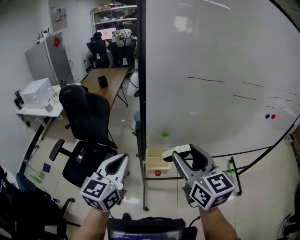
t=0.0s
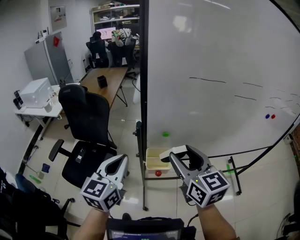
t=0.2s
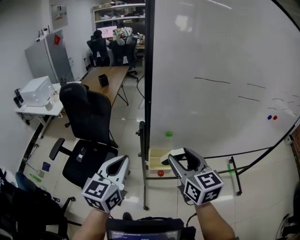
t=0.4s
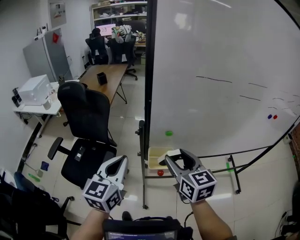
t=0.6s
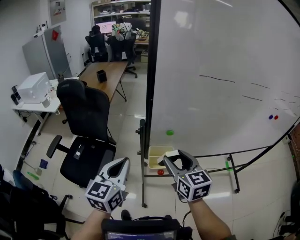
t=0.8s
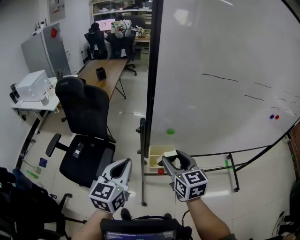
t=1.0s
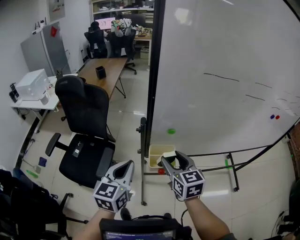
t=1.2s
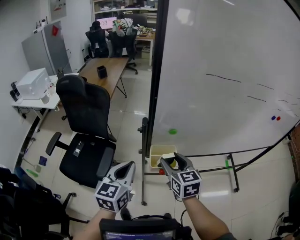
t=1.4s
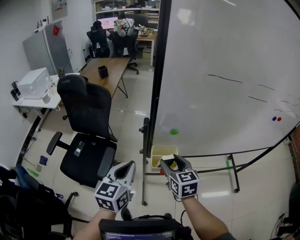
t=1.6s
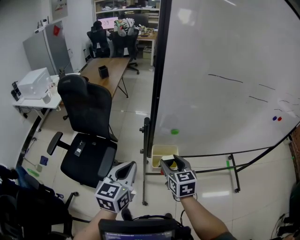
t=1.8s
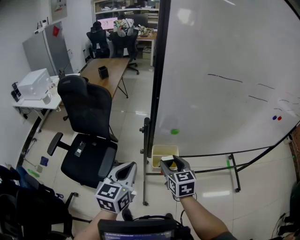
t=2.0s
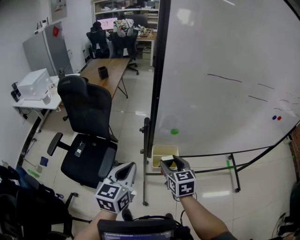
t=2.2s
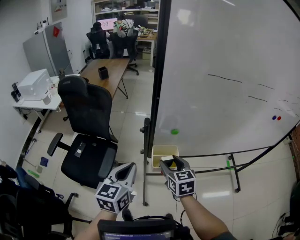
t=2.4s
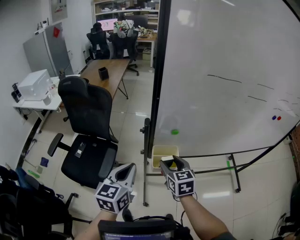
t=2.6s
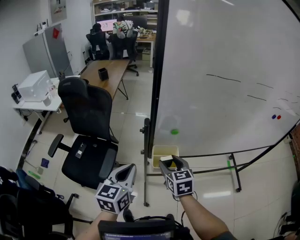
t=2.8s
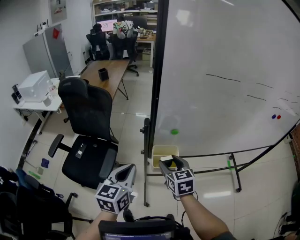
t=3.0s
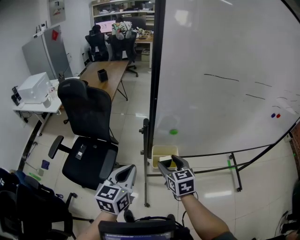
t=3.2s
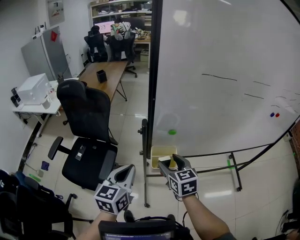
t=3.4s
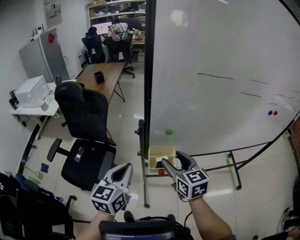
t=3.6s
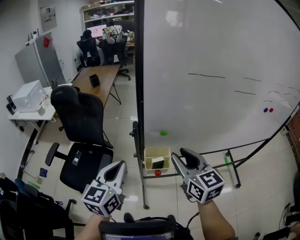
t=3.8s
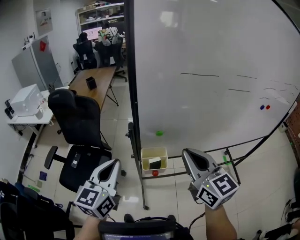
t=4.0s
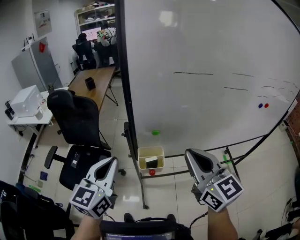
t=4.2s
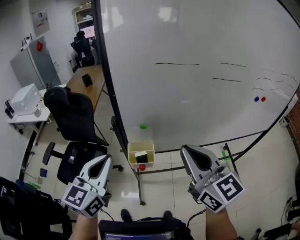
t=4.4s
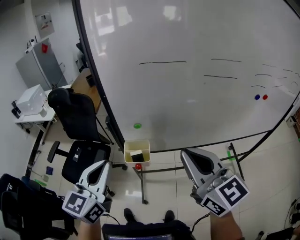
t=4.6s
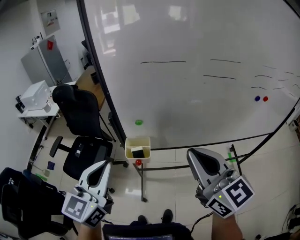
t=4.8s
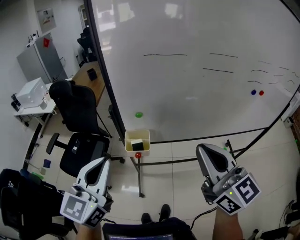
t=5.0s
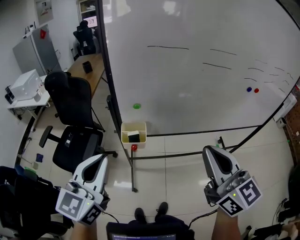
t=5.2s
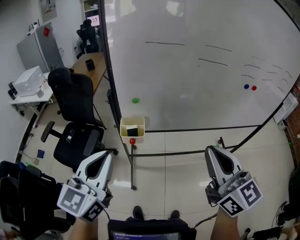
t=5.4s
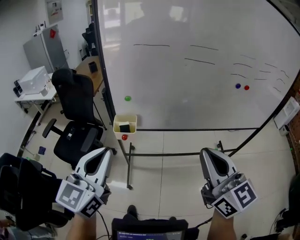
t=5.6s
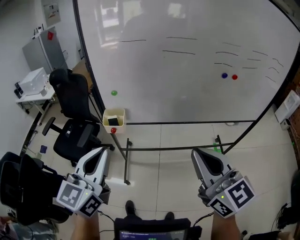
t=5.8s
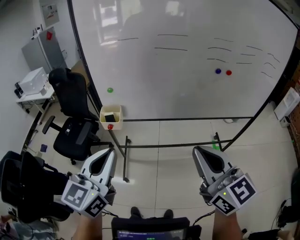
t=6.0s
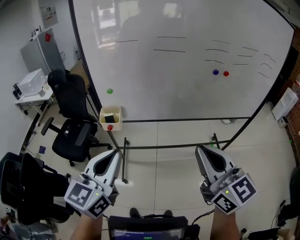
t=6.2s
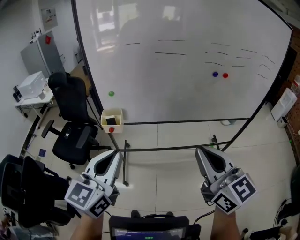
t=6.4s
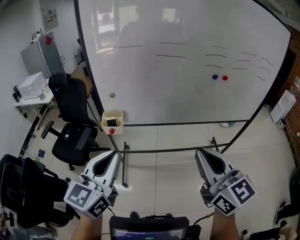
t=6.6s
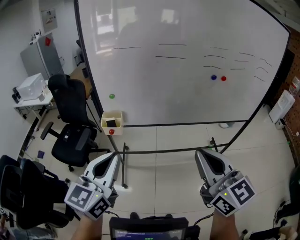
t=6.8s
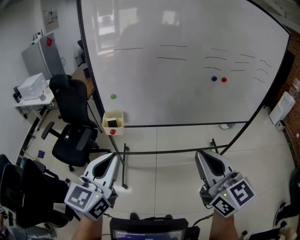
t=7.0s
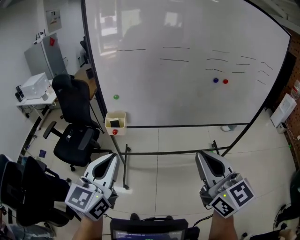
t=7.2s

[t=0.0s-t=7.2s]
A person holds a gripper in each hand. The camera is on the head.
t=0.0s to t=1.4s: The right gripper moves downward, some 20 cm, while the left gripper shifts roughly 10 cm downward.
t=1.4s to t=2.8s: The grippers make only small movements.
t=2.8s to t=4.4s: The right gripper travels upward and to the right by approximately 30 cm, angles its fingers upward, by roughly 30 degrees, and closes up. The left gripper moves upward and to the right, some 15 cm.
t=4.4s to t=5.8s: The grippers both shift backward and to the right by some 30 cm.
t=5.8s to t=7.2s: Both grippers travel together backward, about 5 cm.

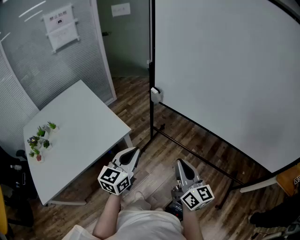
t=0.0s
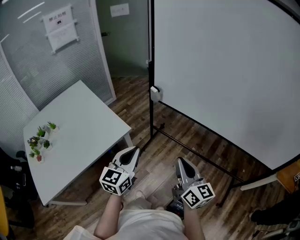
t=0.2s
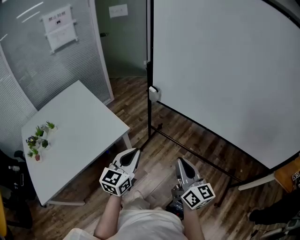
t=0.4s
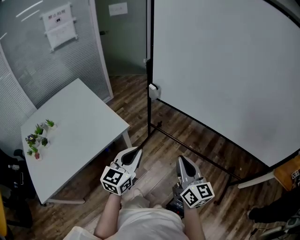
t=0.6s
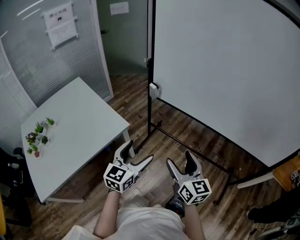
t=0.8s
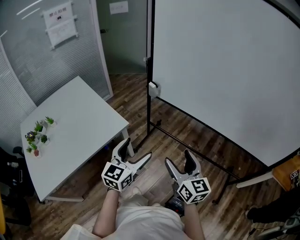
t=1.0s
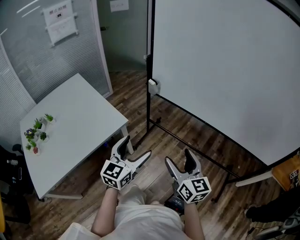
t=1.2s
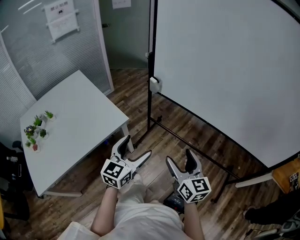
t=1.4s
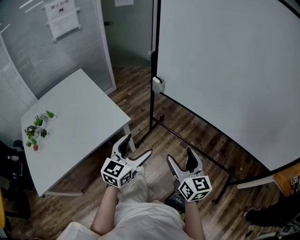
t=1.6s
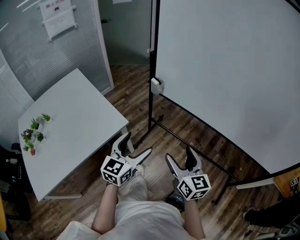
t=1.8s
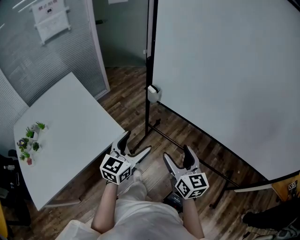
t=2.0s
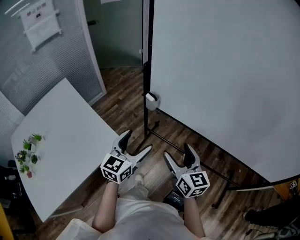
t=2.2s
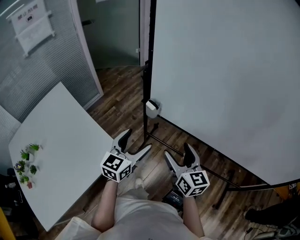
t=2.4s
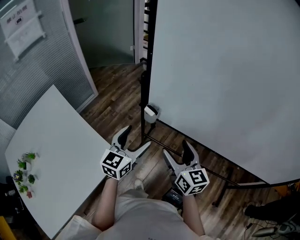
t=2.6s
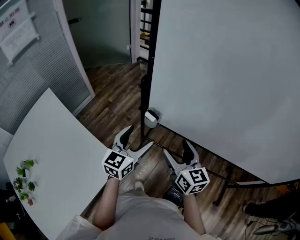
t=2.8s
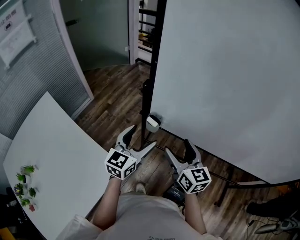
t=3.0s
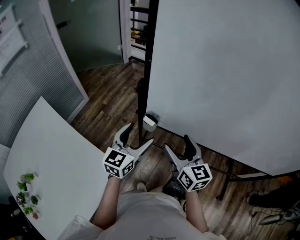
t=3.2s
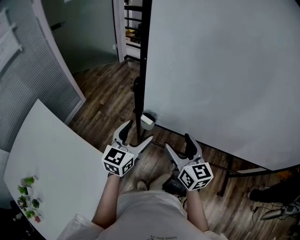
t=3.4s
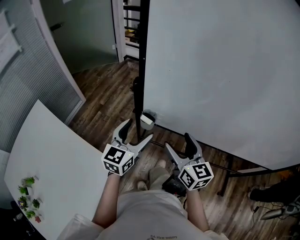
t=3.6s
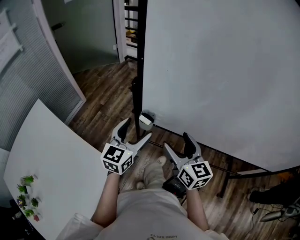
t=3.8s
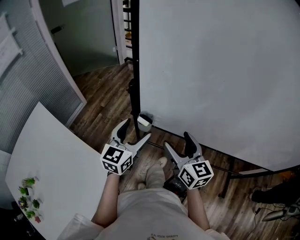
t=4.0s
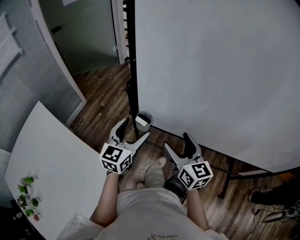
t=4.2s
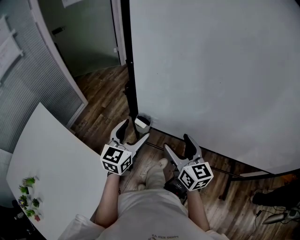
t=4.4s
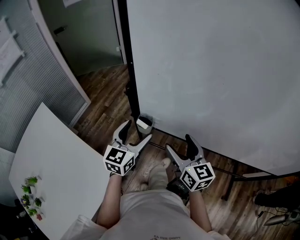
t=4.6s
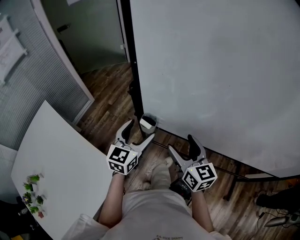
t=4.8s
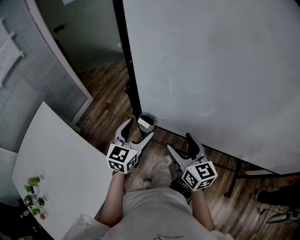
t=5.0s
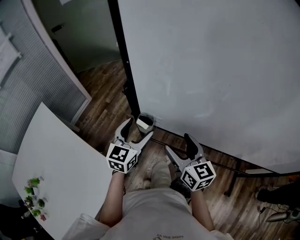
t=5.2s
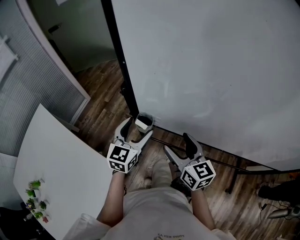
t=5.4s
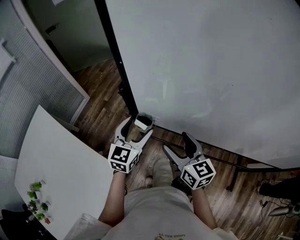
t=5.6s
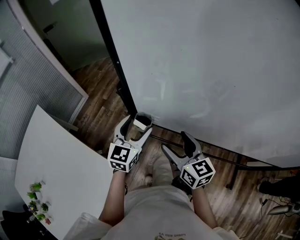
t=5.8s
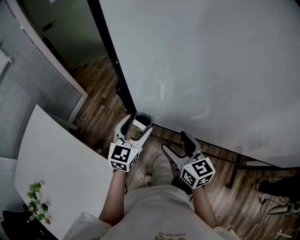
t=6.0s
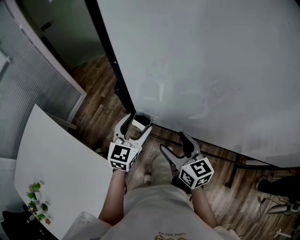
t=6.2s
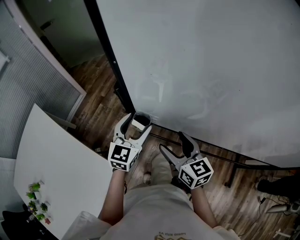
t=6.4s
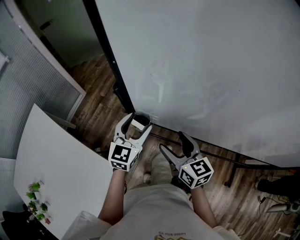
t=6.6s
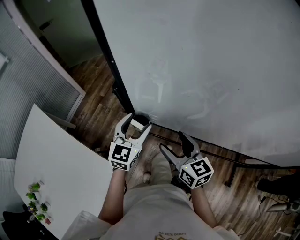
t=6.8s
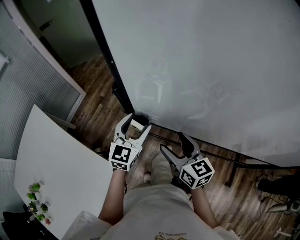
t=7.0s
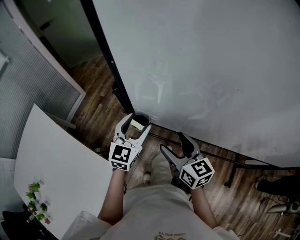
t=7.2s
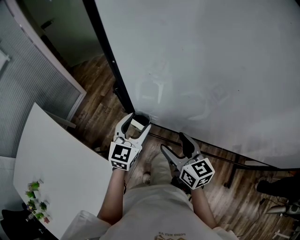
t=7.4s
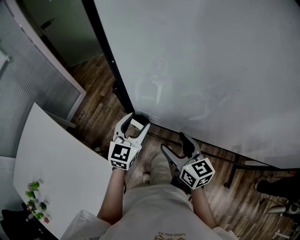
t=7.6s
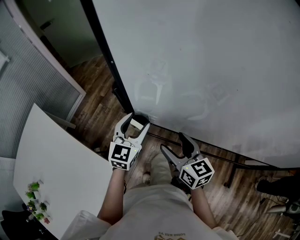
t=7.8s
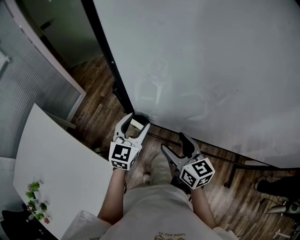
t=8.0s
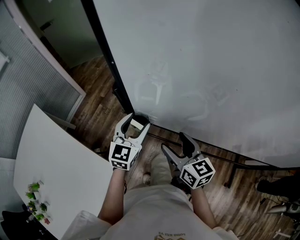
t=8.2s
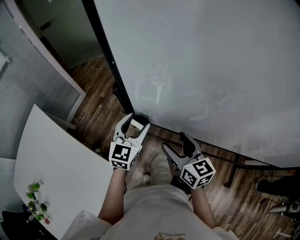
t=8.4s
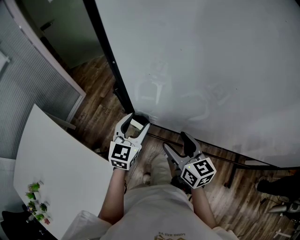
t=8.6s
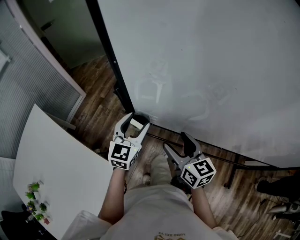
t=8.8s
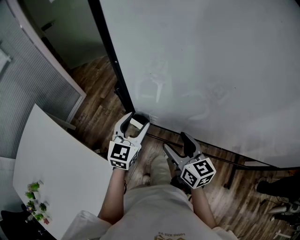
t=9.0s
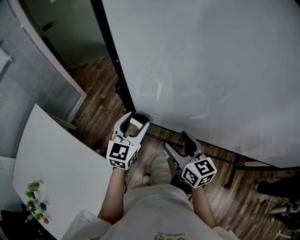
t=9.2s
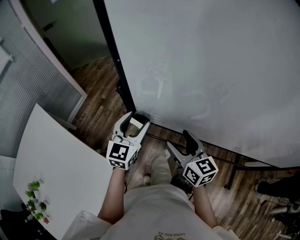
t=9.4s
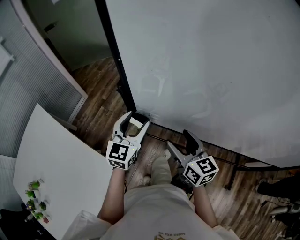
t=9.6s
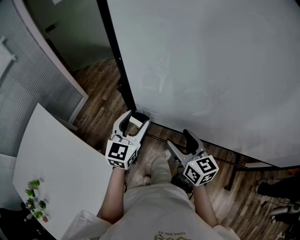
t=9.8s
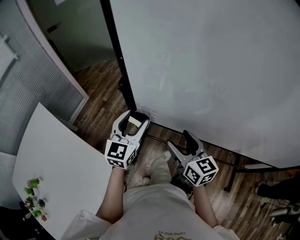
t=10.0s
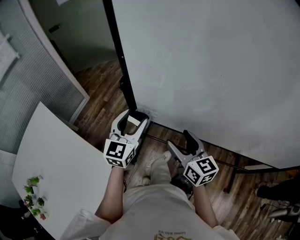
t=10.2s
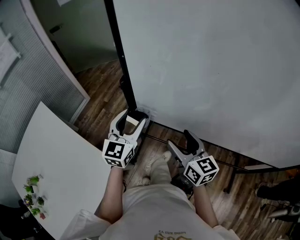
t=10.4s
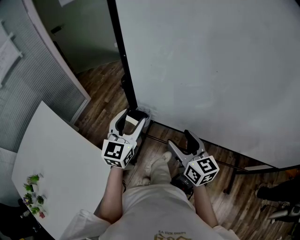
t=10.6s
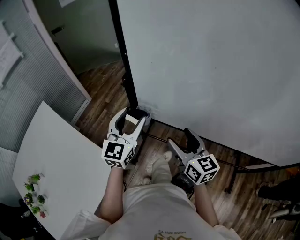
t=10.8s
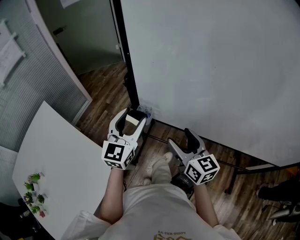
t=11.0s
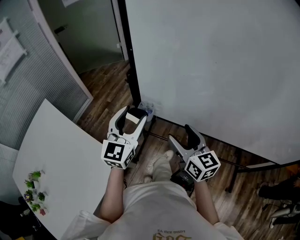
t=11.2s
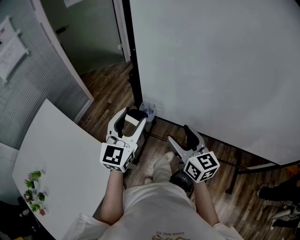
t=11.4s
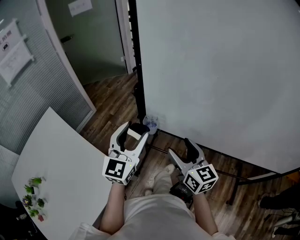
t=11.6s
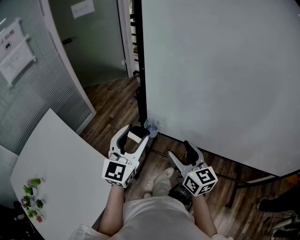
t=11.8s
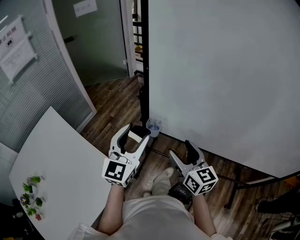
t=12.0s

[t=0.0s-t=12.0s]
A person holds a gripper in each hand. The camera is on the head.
t=0.0s to t=1.6s: The left gripper opens, while the right gripper opens up.
t=1.6s to t=3.0s: Both grippers move forward, about 35 cm.
t=3.0s to t=4.4s: There are only small adjustments of the grippers.
t=4.4s to t=6.0s: The left gripper travels forward by approximately 5 cm; the right gripper changes place by some 5 cm.
t=6.0s to t=9.0s: Neither gripper changes place.
t=9.0s to t=10.4s: The left gripper moves upward, approximately 5 cm.
t=10.4s to t=12.0s: The left gripper goes approximately 10 cm backward and upward. Meanwhile the right gripper shifts by roughly 5 cm.

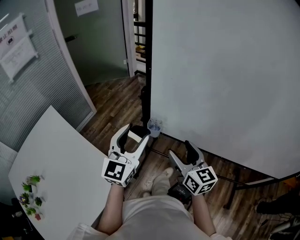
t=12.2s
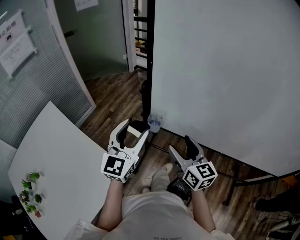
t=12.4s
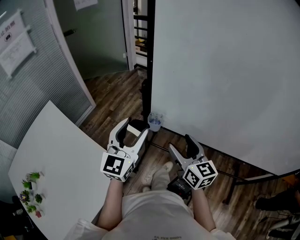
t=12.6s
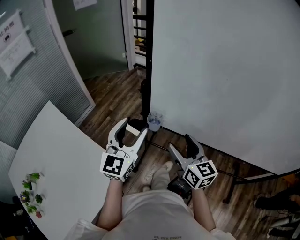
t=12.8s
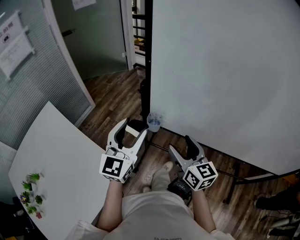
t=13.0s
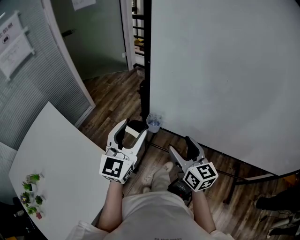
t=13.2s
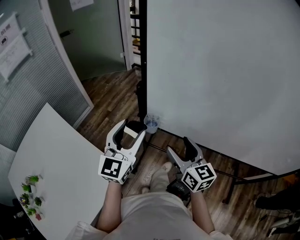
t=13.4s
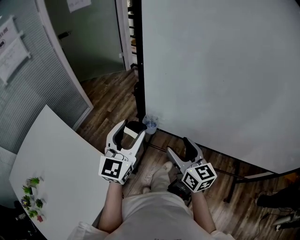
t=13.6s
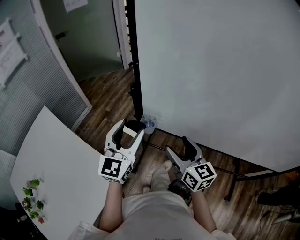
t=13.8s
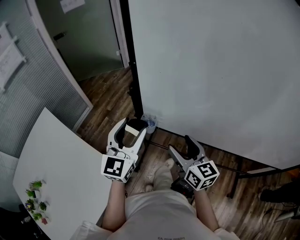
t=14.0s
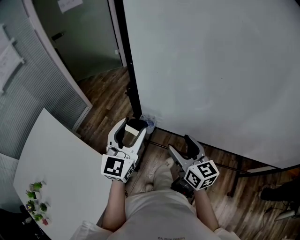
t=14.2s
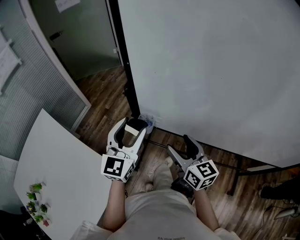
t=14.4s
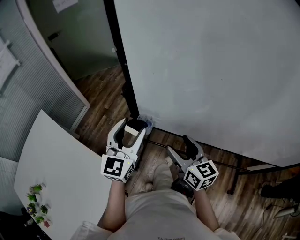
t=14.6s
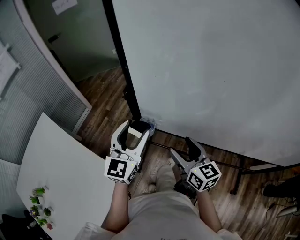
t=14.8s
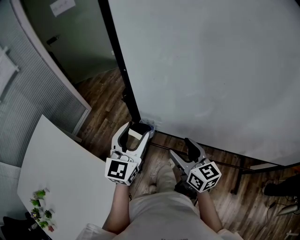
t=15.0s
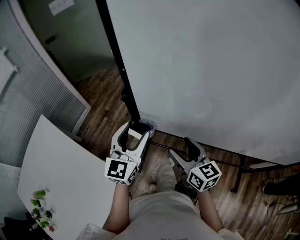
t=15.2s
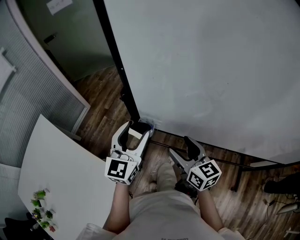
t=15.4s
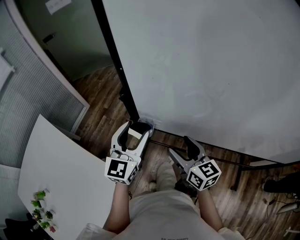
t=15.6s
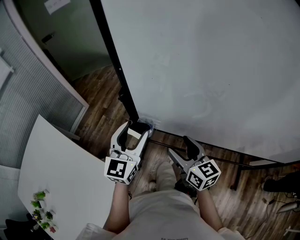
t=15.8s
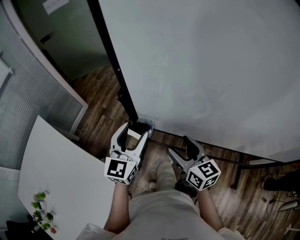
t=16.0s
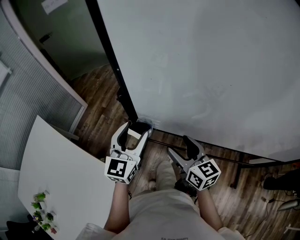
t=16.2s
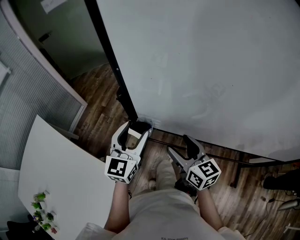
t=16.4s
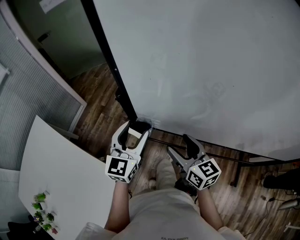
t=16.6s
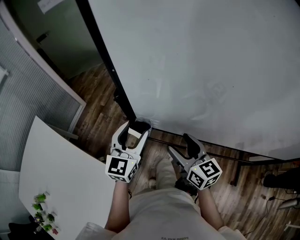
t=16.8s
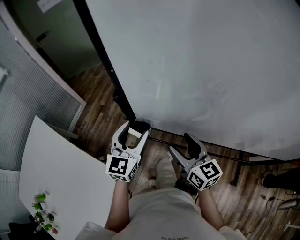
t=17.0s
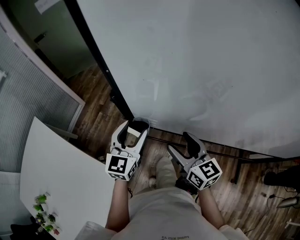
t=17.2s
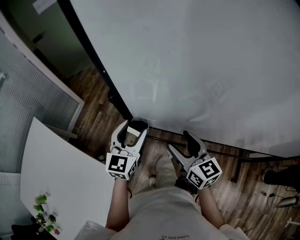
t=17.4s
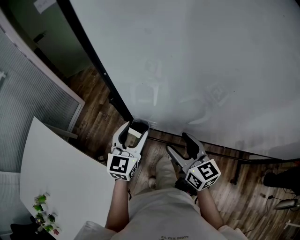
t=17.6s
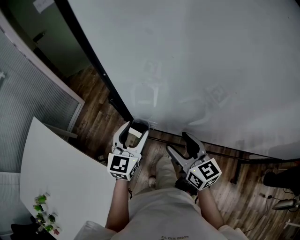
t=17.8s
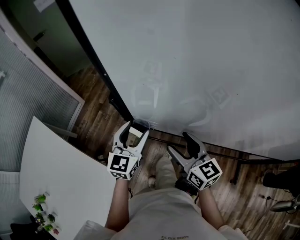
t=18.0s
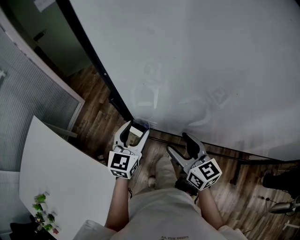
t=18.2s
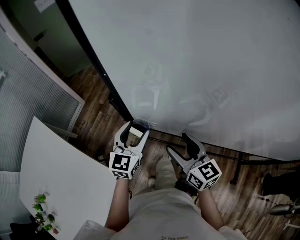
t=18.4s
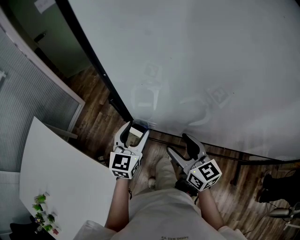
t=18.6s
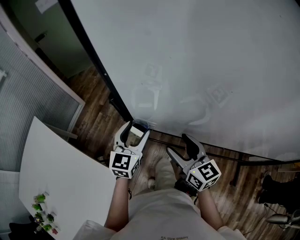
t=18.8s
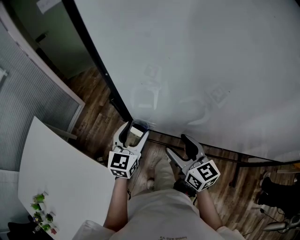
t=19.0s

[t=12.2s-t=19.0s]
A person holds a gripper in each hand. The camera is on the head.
t=12.2s to t=13.6s: The grippers make only small movements.
t=13.6s to t=15.0s: The left gripper changes place by some 5 cm.
t=15.0s to t=16.2s: The grippers make only small movements.
t=16.2s to t=17.6s: The left gripper changes place by about 5 cm.
t=17.6s to t=19.0s: There are only small adjustments of the grippers.
